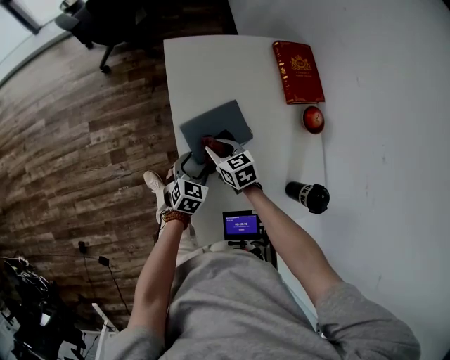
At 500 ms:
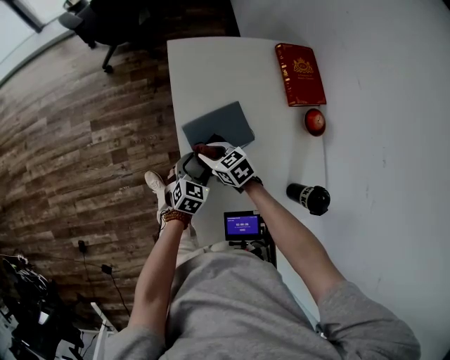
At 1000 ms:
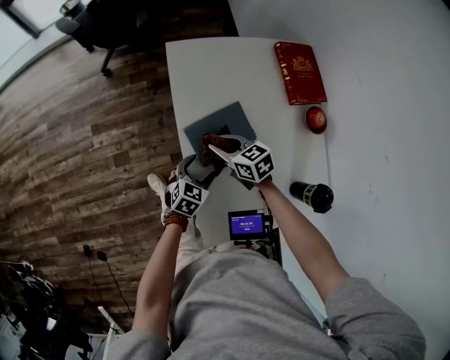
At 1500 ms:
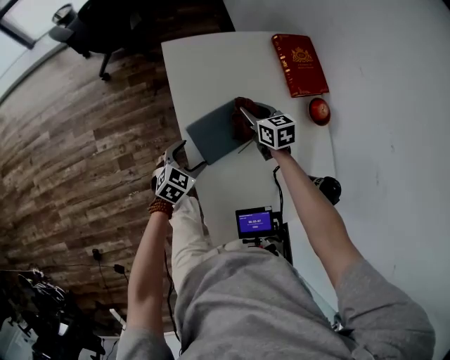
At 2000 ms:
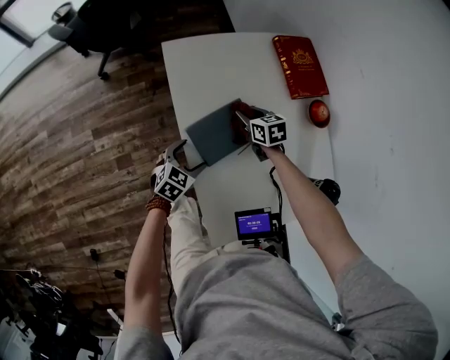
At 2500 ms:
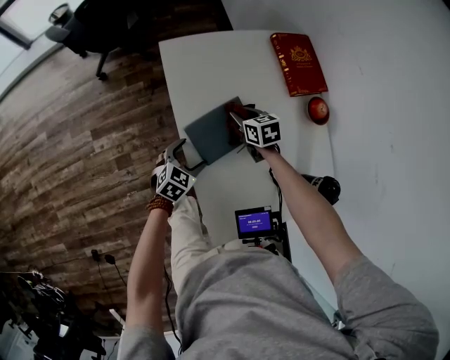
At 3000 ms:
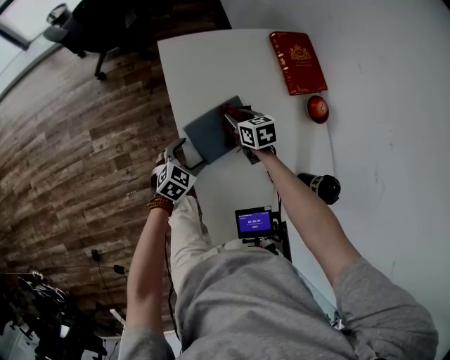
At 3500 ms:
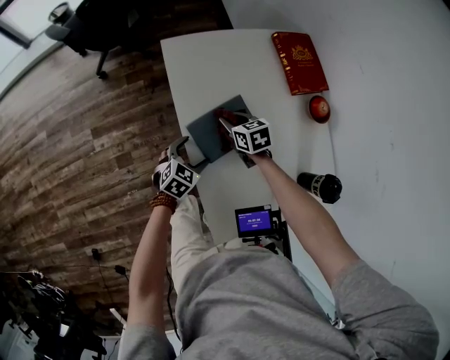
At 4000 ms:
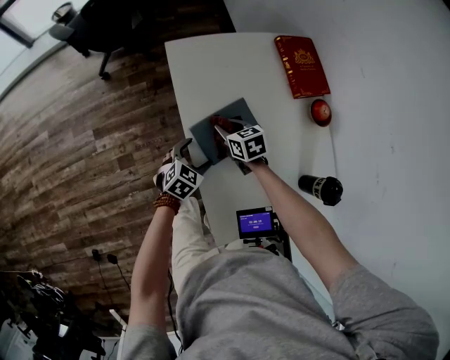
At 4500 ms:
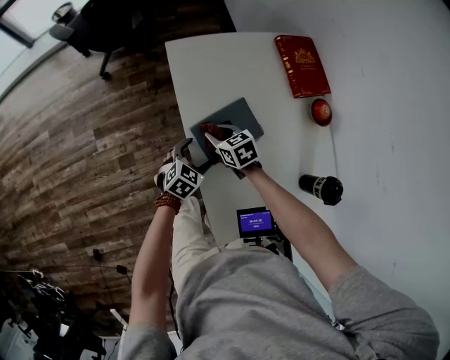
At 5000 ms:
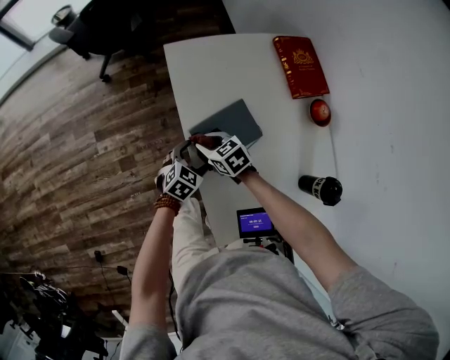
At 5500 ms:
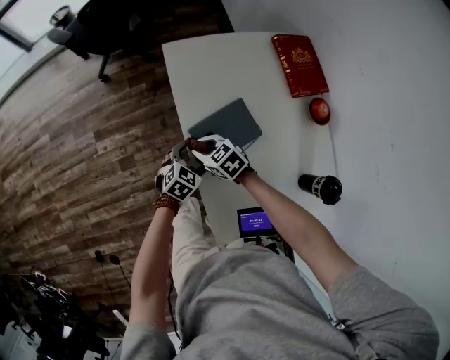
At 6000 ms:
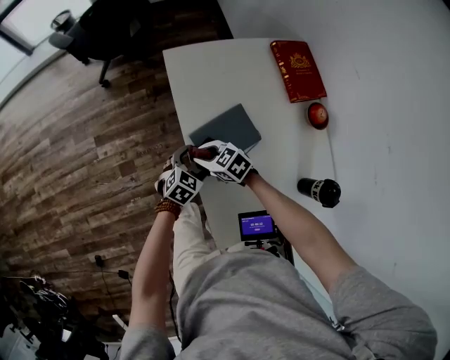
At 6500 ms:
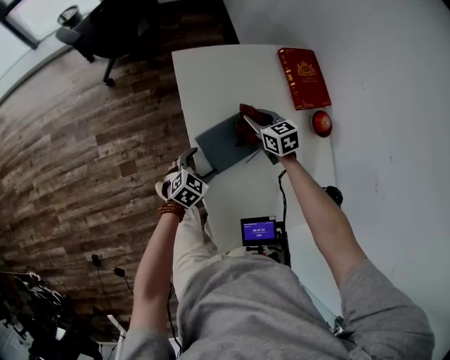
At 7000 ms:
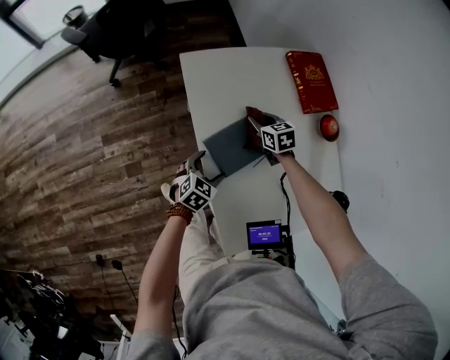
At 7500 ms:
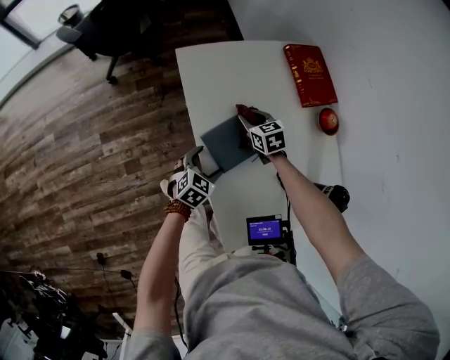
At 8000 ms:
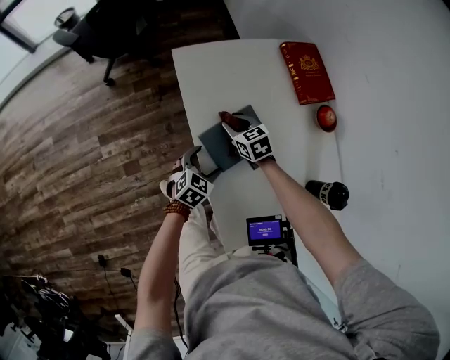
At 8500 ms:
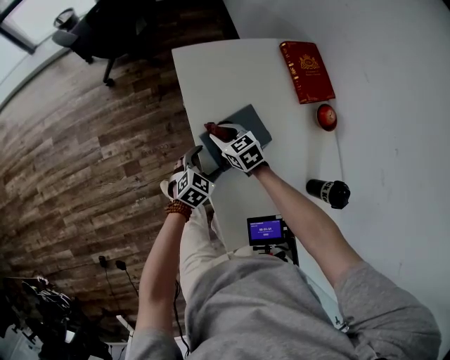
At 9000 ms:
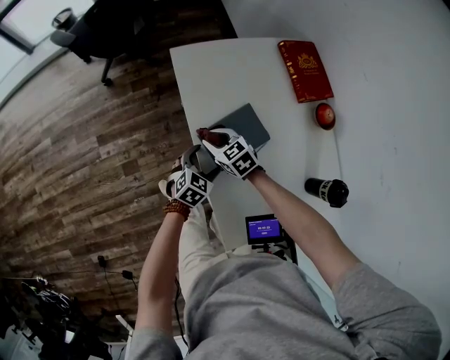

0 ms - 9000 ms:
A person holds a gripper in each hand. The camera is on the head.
0 ms - 2000 ms: The right gripper changes place by about 15 cm.
2000 ms - 4500 ms: The right gripper moves to the left and backward, roughly 15 cm.
4500 ms - 7000 ms: The right gripper travels to the right and forward by approximately 15 cm.
7000 ms - 9000 ms: The right gripper is displaced to the left and backward by about 20 cm, and rotates roughly 20 degrees.

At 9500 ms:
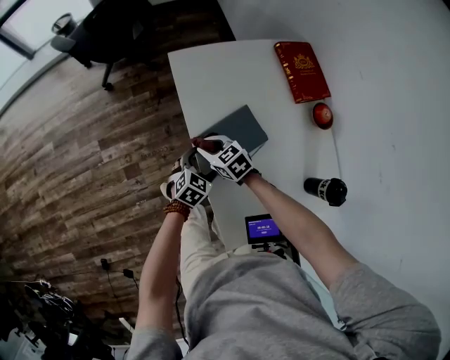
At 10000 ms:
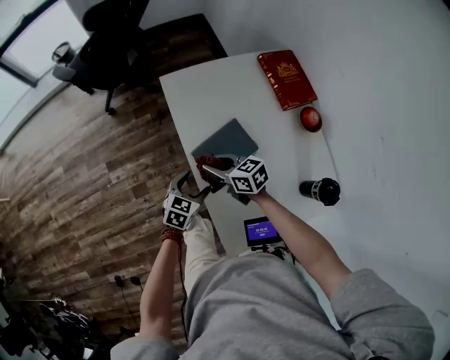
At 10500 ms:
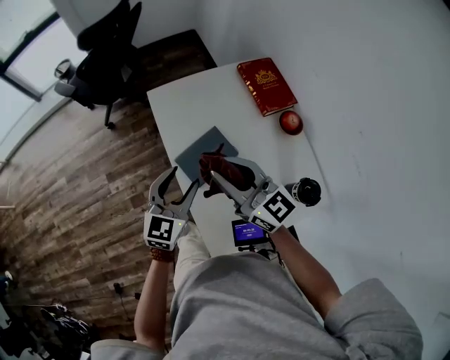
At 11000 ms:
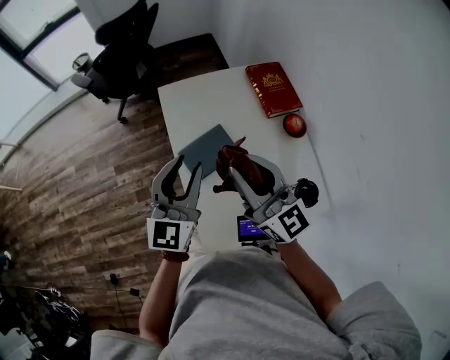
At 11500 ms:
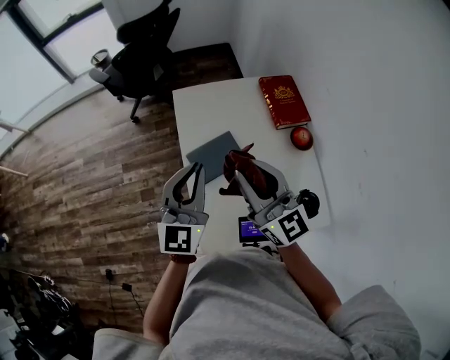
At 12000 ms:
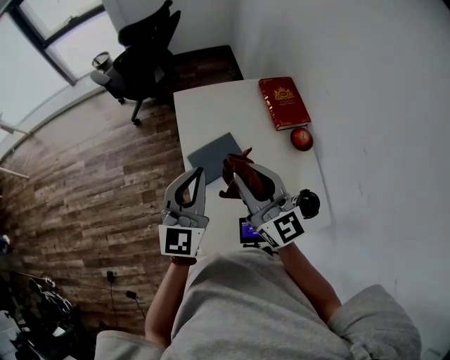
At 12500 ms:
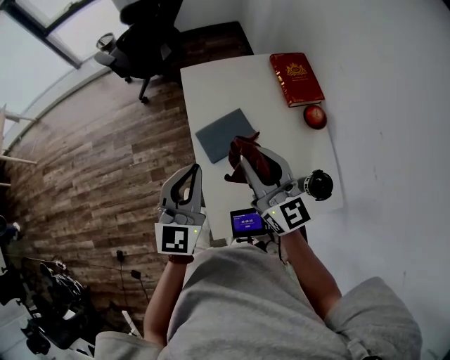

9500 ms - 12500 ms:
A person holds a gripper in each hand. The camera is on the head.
9500 ms - 11000 ms: The right gripper travels upward and to the right by roughly 40 cm, and angles its fingers upward, by some 60 degrees, while the left gripper is displaced upward by roughly 40 cm, tips its fingers upward by about 40 degrees, and closes its fingers.
11000 ms - 12500 ms: The left gripper changes place by approximately 5 cm, and closes up.

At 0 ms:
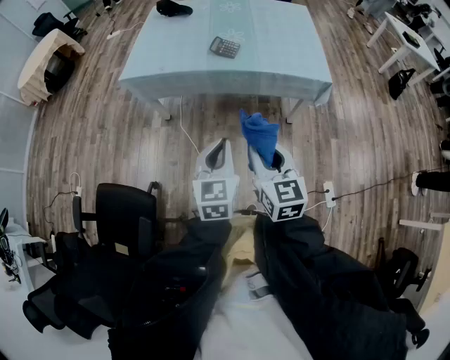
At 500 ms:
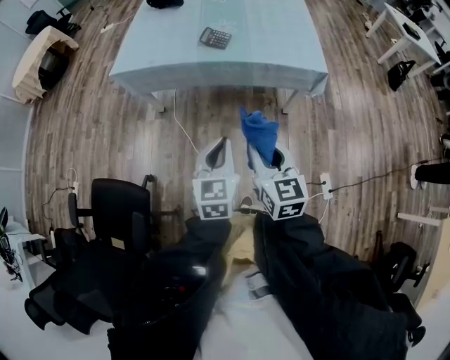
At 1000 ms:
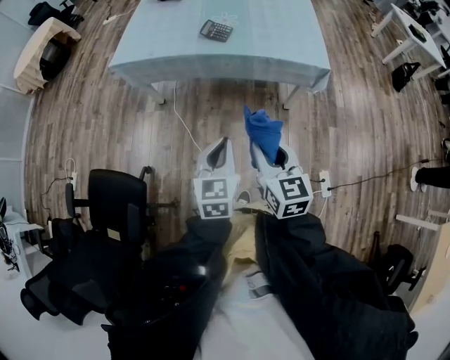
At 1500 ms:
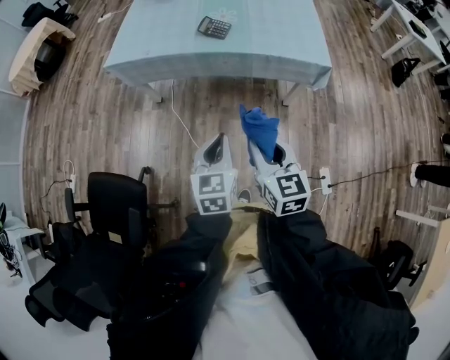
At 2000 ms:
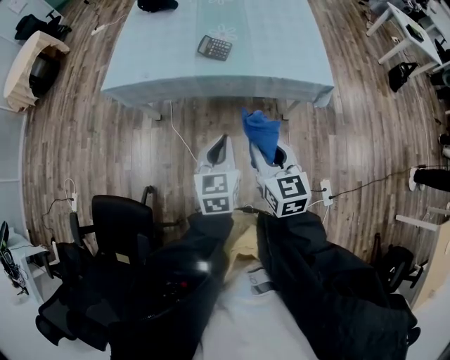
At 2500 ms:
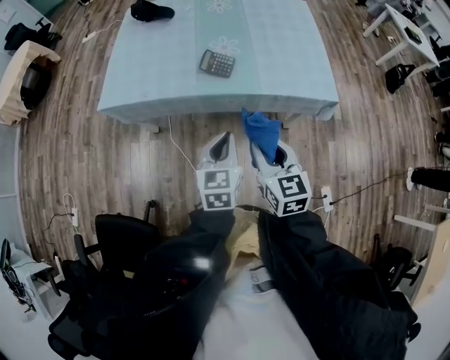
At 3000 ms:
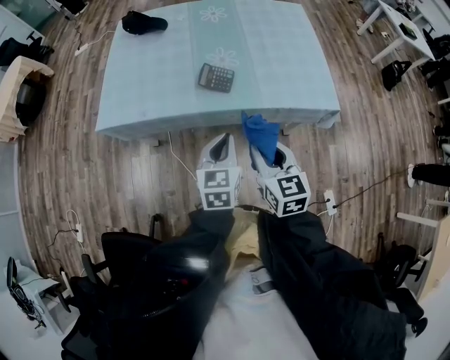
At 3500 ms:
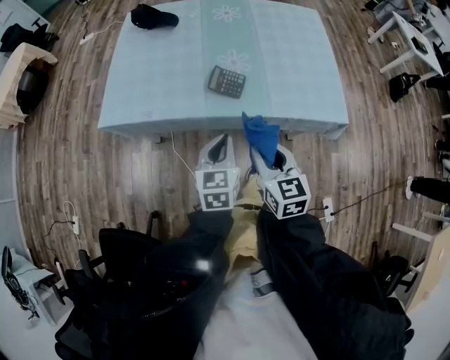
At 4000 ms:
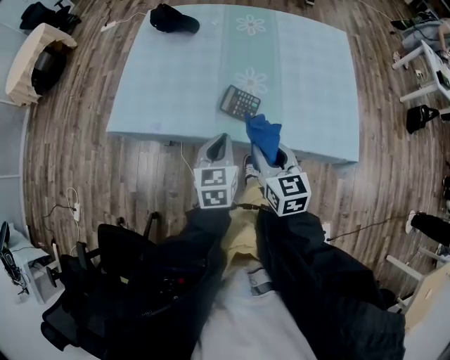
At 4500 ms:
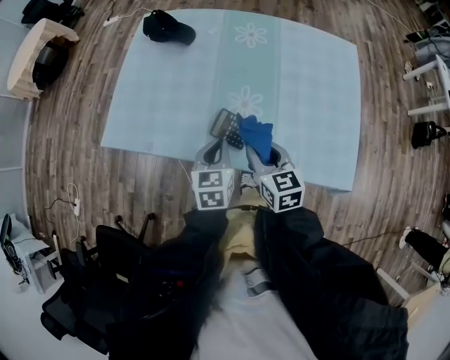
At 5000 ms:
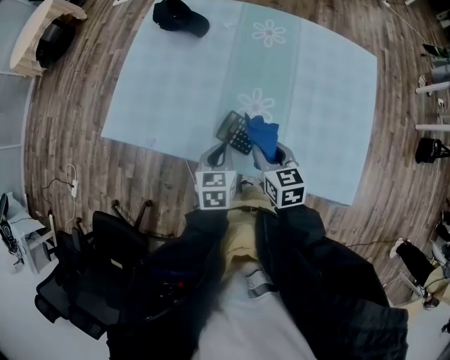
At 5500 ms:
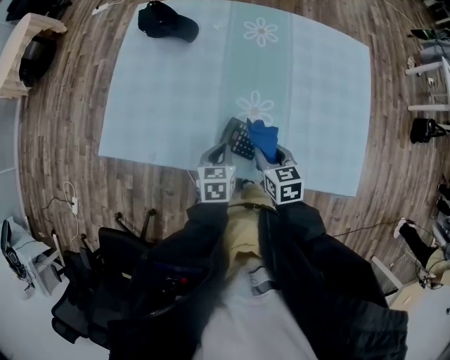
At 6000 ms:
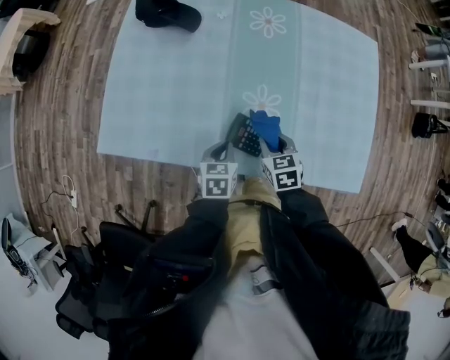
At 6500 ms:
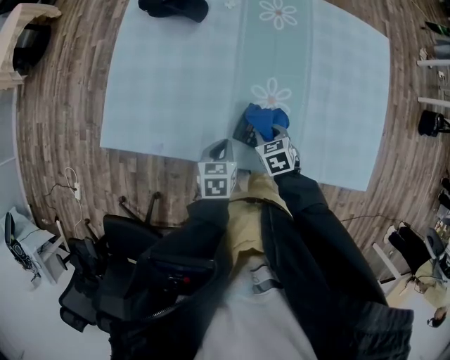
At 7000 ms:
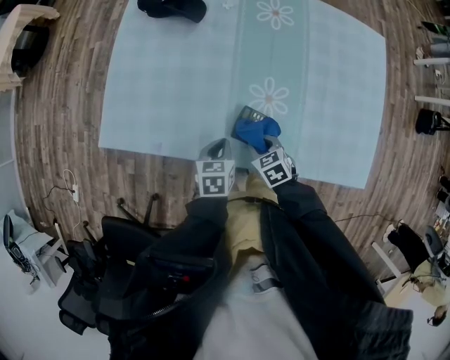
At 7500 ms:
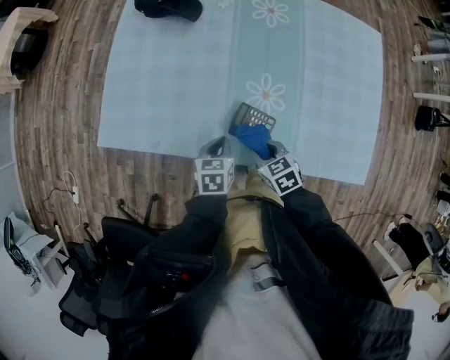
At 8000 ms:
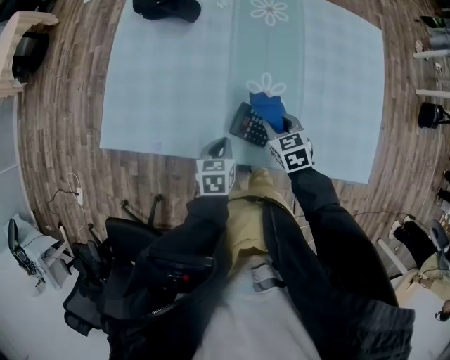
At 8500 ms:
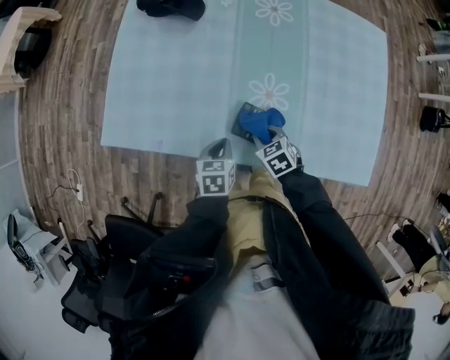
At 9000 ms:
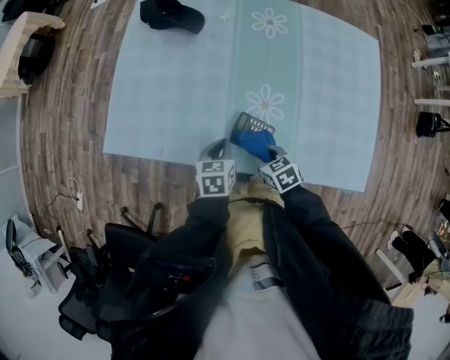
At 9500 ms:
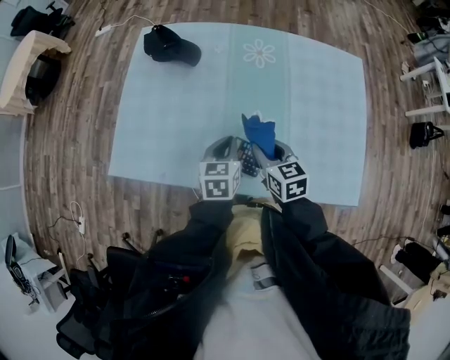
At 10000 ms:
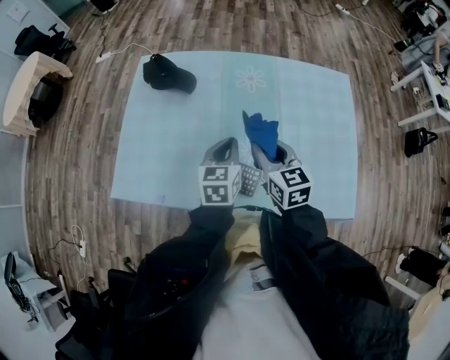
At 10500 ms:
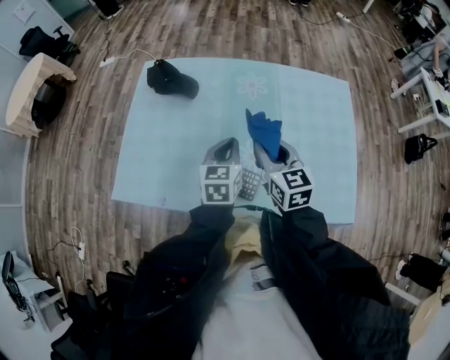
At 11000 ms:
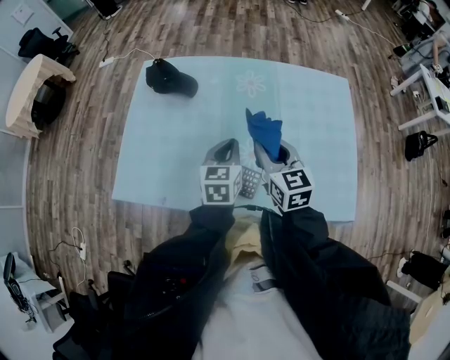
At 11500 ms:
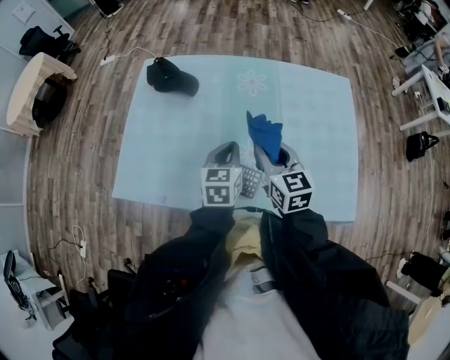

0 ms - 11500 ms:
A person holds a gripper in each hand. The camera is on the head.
0 ms - 2000 ms: Both grippers travel together forward, some 10 cm.
2000 ms - 4000 ms: The two grippers go about 30 cm forward.
4000 ms - 6000 ms: The right gripper shifts some 25 cm forward and downward, and changes its angle by about 30 degrees; the left gripper moves downward and forward, approximately 20 cm, and turns by some 30 degrees.
6000 ms - 7500 ms: The right gripper goes about 10 cm backward and to the left.
7500 ms - 9500 ms: Both grippers move upward, forward and to the right, roughly 15 cm. The right gripper changes its angle by about 20 degrees.
9500 ms - 11500 ms: The right gripper goes about 10 cm upward, while the left gripper moves upward, roughly 5 cm.

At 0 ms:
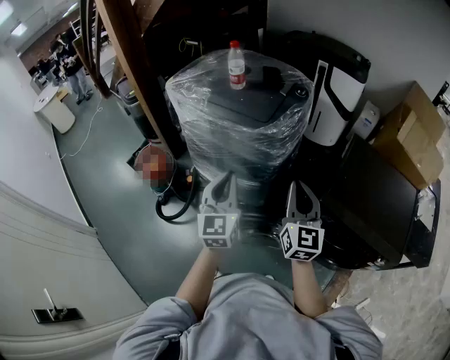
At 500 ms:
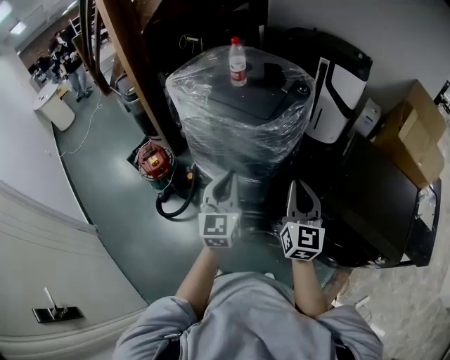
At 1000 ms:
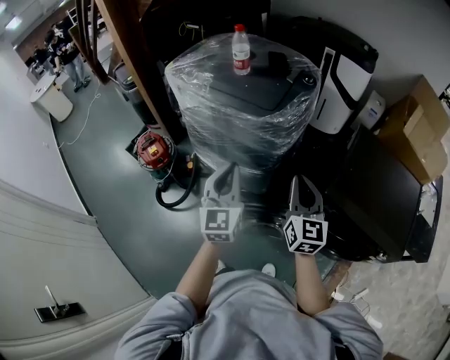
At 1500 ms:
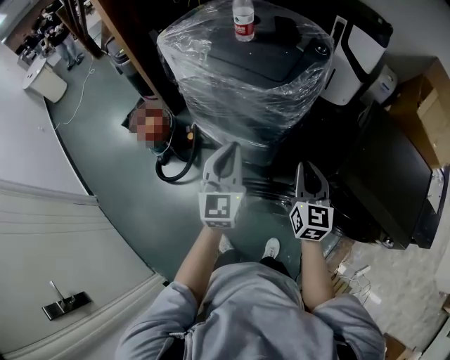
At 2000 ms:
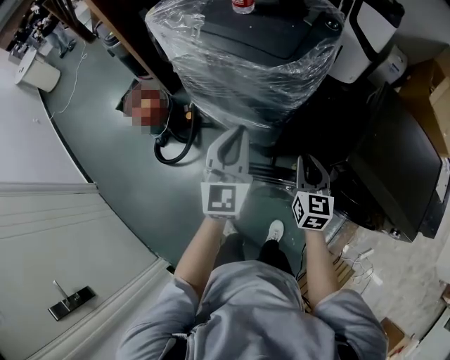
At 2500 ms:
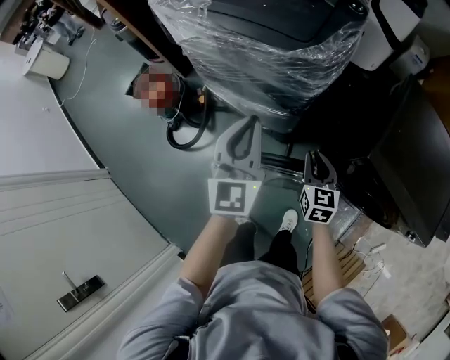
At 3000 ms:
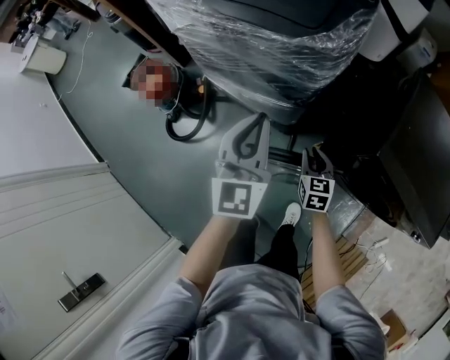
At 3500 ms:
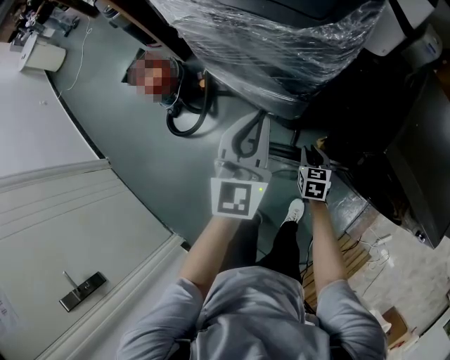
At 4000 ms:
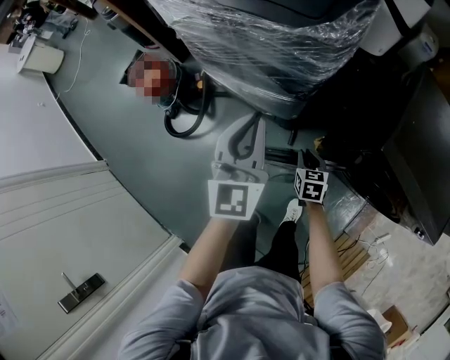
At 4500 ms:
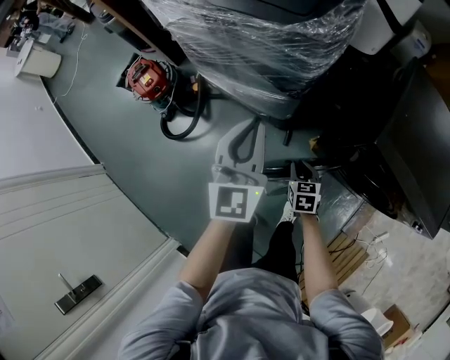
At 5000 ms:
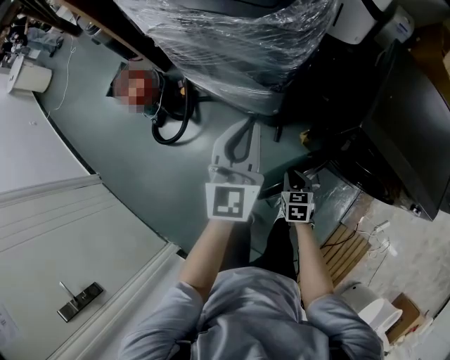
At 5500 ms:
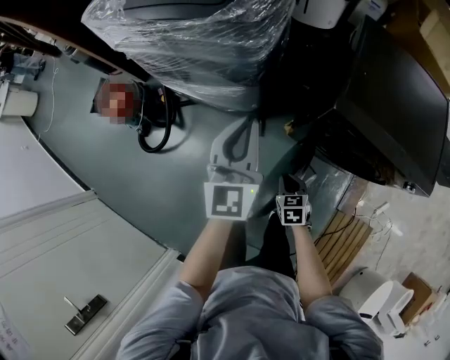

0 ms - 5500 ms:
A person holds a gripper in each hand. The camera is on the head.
0 ms - 2000 ms: The right gripper shifts about 20 cm downward, and swivels about 20 degrees. Meanwhile the left gripper shifts some 10 cm downward and forward.
2000 ms - 3500 ms: The left gripper moves downward, about 5 cm, while the right gripper travels downward by some 25 cm, and swivels about 30 degrees.
3500 ms - 5500 ms: The right gripper travels backward and to the right by about 20 cm. The left gripper travels to the right and backward by approximately 15 cm.
